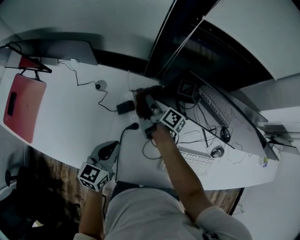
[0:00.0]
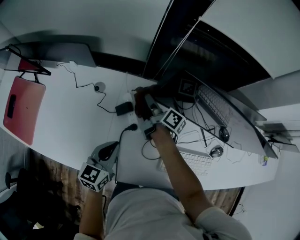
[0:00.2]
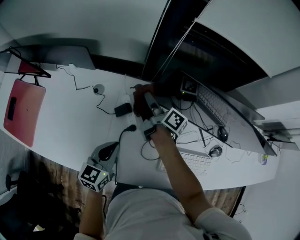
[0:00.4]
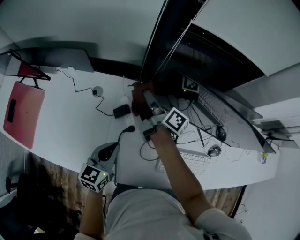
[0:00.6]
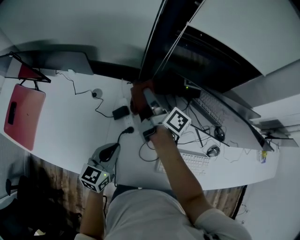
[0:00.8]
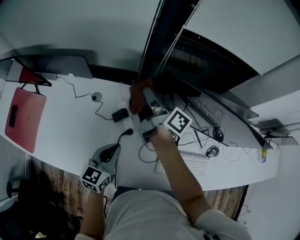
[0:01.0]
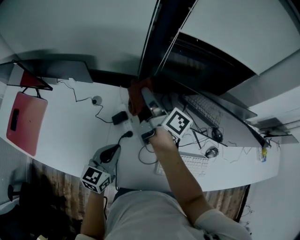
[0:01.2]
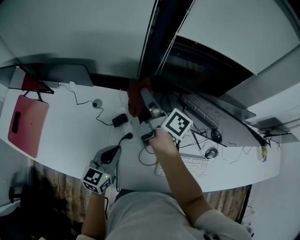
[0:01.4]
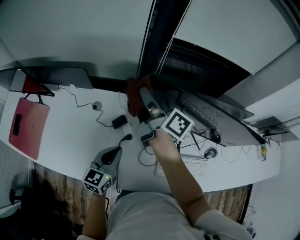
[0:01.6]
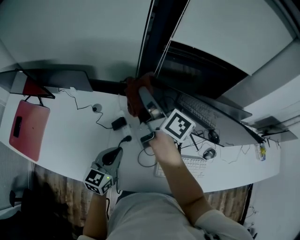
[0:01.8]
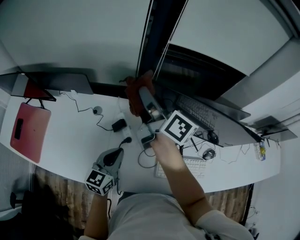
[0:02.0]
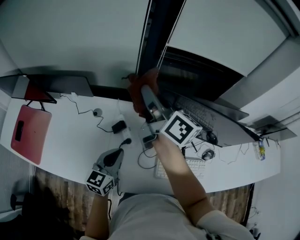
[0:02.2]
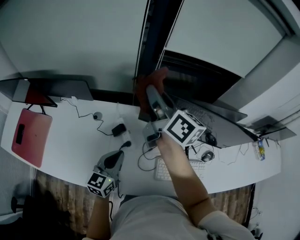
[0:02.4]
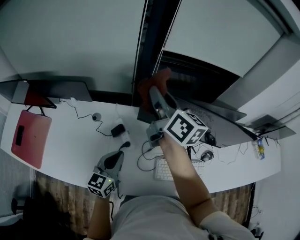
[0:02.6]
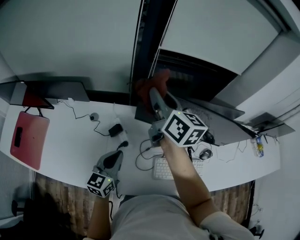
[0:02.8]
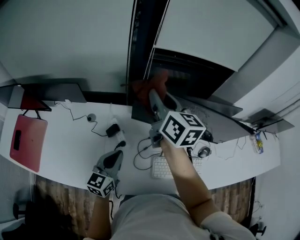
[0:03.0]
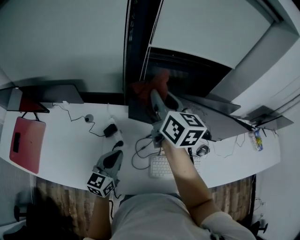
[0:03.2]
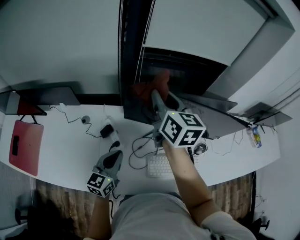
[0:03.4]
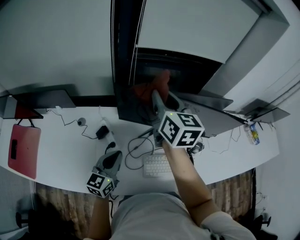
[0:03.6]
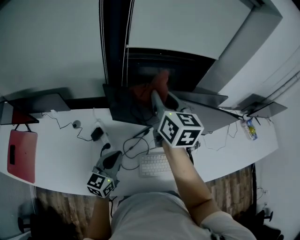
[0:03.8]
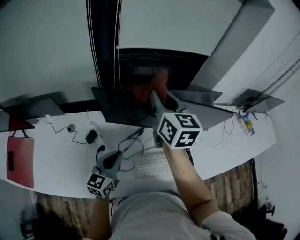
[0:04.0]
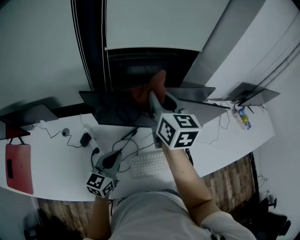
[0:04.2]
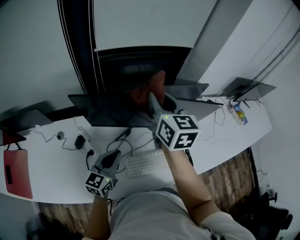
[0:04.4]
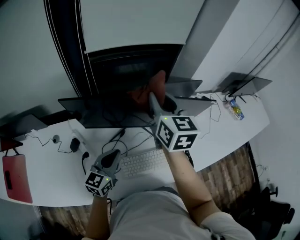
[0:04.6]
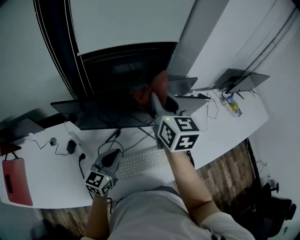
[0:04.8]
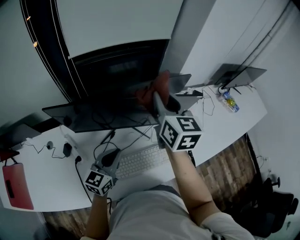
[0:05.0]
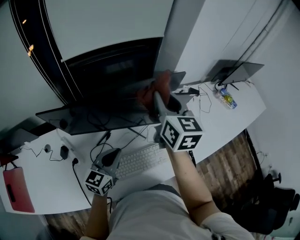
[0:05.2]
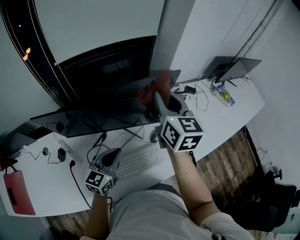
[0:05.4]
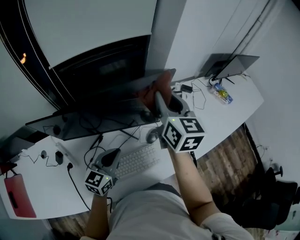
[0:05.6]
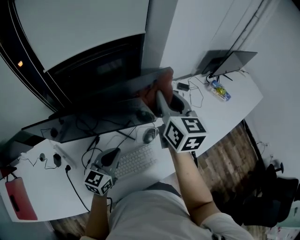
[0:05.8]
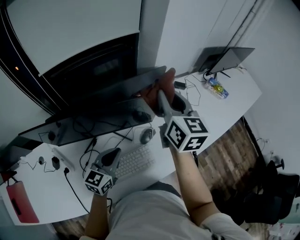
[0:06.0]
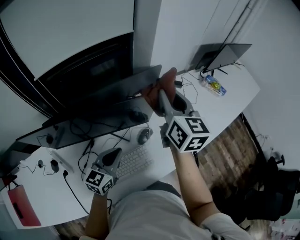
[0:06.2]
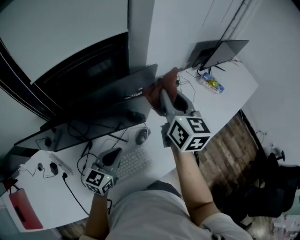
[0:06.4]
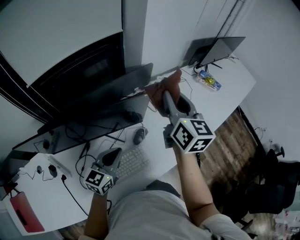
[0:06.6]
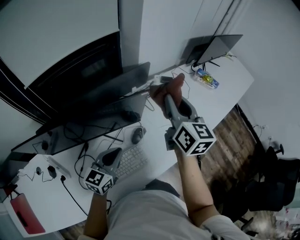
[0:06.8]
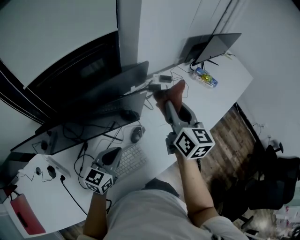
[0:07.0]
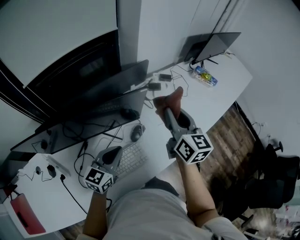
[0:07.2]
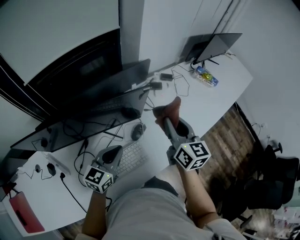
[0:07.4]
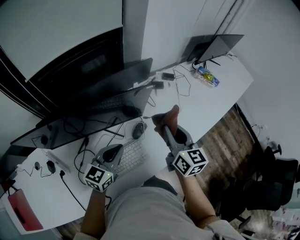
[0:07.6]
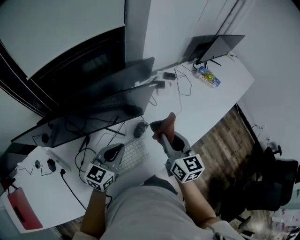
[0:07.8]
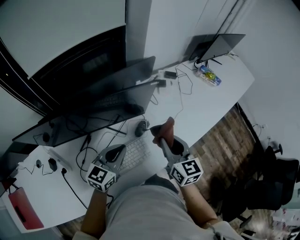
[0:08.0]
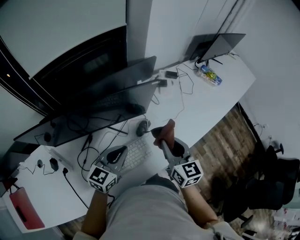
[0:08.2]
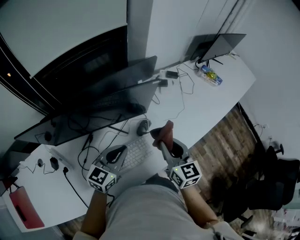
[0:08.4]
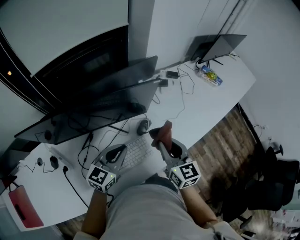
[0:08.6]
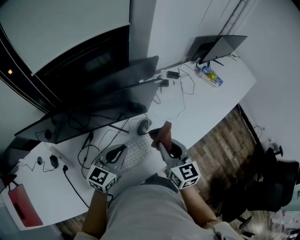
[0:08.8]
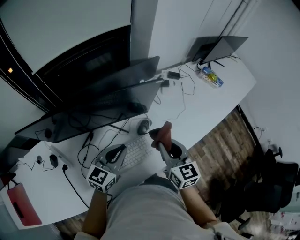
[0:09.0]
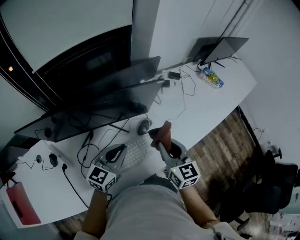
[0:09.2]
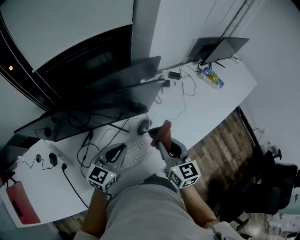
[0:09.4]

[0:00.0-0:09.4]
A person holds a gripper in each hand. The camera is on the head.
0:00.0 to 0:01.6: The right gripper heads upward, covering roughly 30 cm, and turns by roughly 20 degrees. The left gripper travels upward by some 5 cm.
0:01.6 to 0:03.2: The right gripper travels to the right and upward by approximately 15 cm, and rolls counterclockwise, seen from behind, by approximately 40 degrees, while the left gripper shifts by approximately 5 cm.
0:03.2 to 0:04.8: Both grippers travel together to the right, roughly 25 cm. The left gripper swivels some 20 degrees; the right gripper rotates about 20 degrees.
0:04.8 to 0:06.2: The right gripper heads to the right, covering some 25 cm, while the left gripper shifts some 20 cm to the right and forward.
0:06.2 to 0:07.8: The right gripper is displaced downward, backward and to the right by some 20 cm.
0:07.8 to 0:09.4: The right gripper shifts by roughly 5 cm.

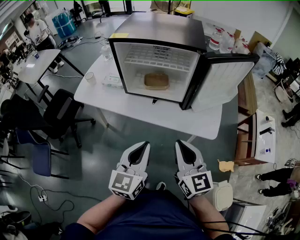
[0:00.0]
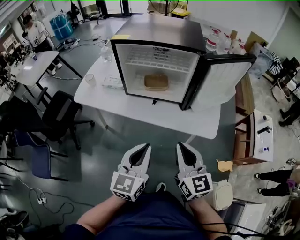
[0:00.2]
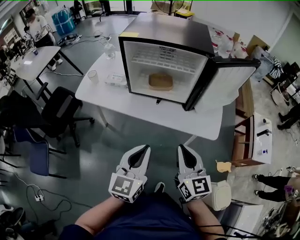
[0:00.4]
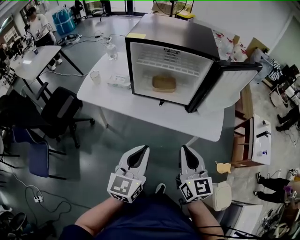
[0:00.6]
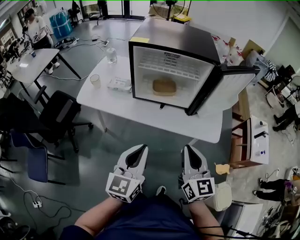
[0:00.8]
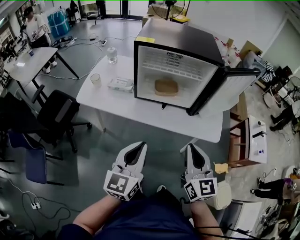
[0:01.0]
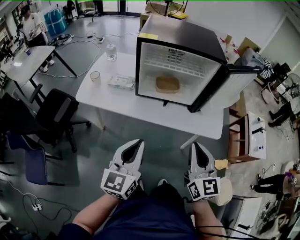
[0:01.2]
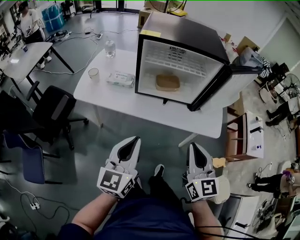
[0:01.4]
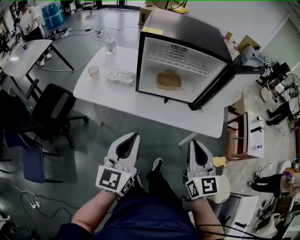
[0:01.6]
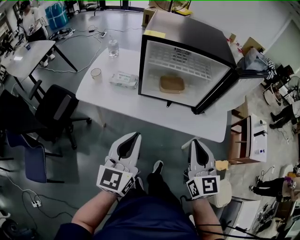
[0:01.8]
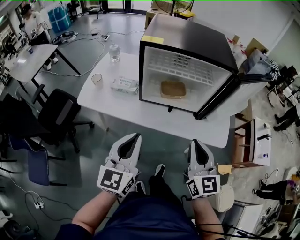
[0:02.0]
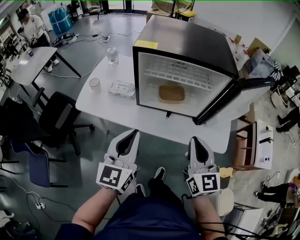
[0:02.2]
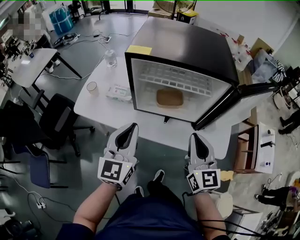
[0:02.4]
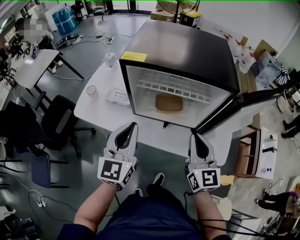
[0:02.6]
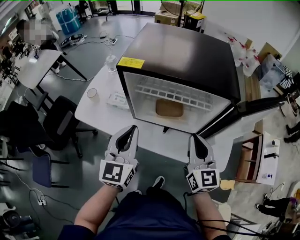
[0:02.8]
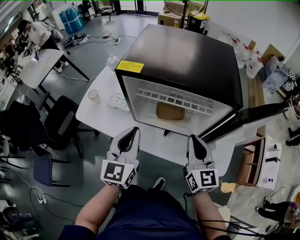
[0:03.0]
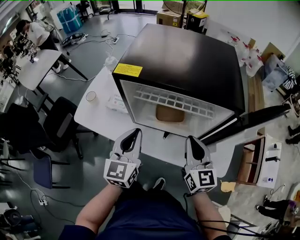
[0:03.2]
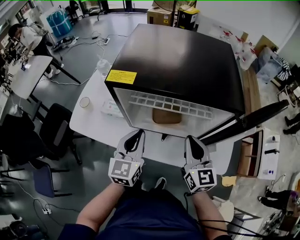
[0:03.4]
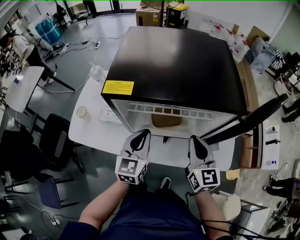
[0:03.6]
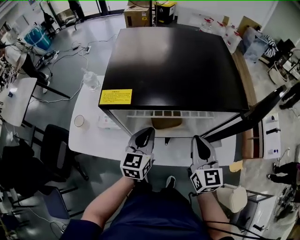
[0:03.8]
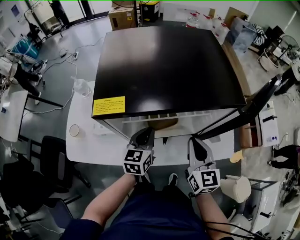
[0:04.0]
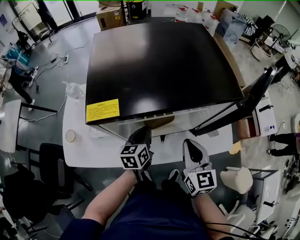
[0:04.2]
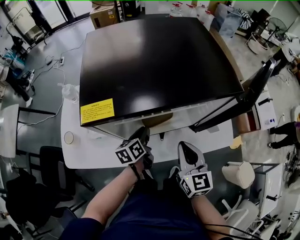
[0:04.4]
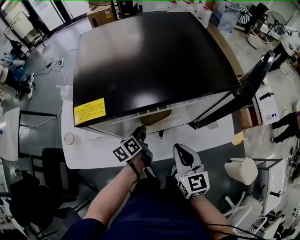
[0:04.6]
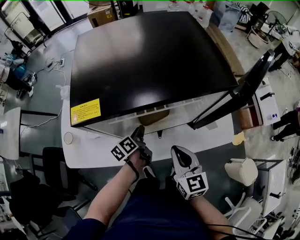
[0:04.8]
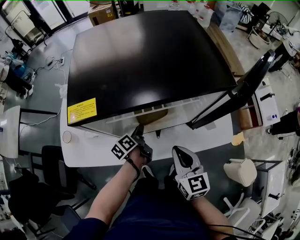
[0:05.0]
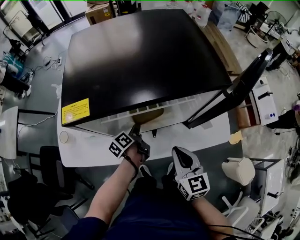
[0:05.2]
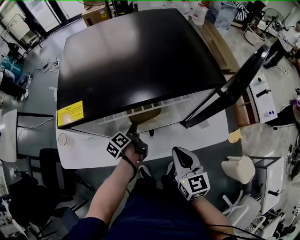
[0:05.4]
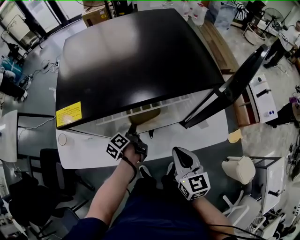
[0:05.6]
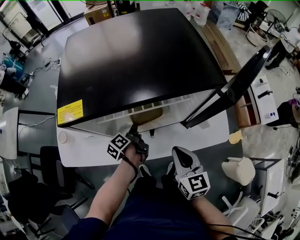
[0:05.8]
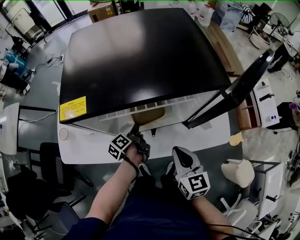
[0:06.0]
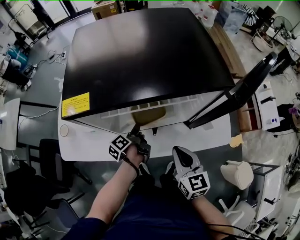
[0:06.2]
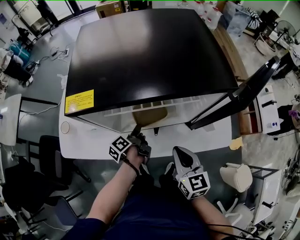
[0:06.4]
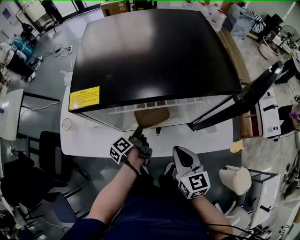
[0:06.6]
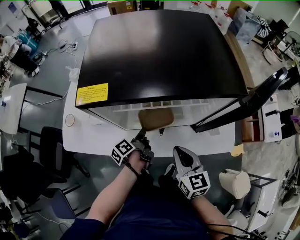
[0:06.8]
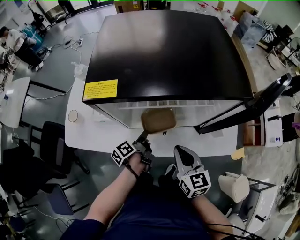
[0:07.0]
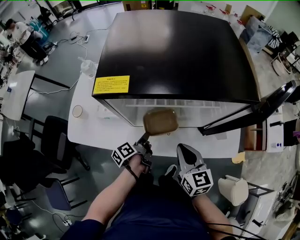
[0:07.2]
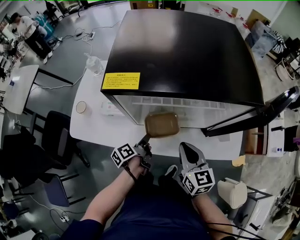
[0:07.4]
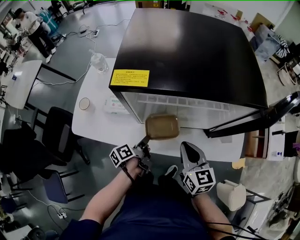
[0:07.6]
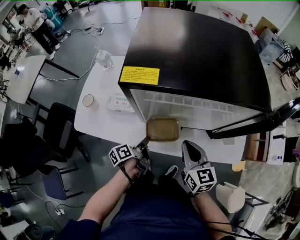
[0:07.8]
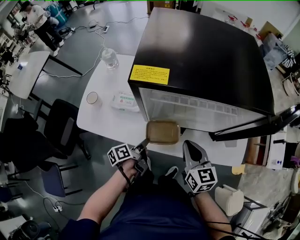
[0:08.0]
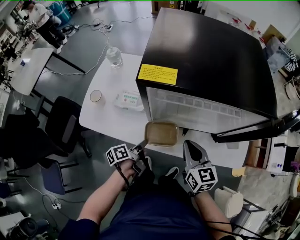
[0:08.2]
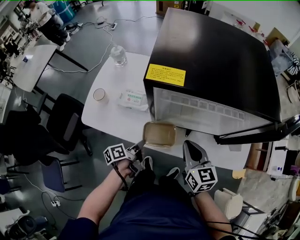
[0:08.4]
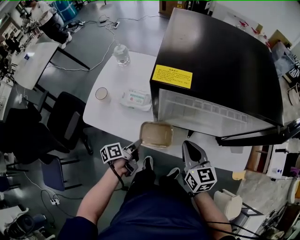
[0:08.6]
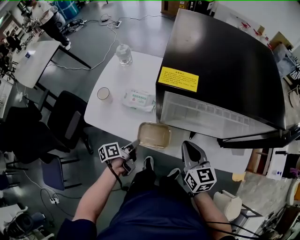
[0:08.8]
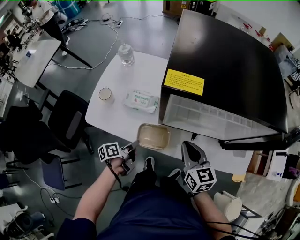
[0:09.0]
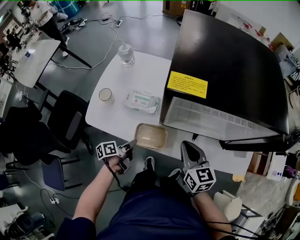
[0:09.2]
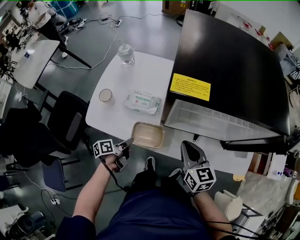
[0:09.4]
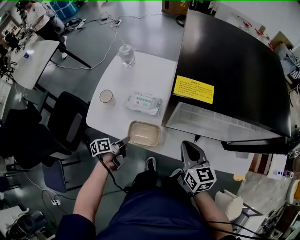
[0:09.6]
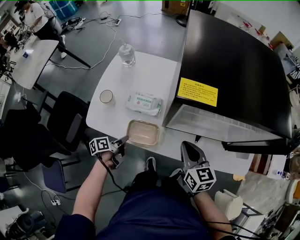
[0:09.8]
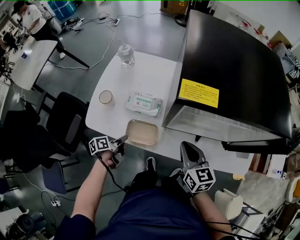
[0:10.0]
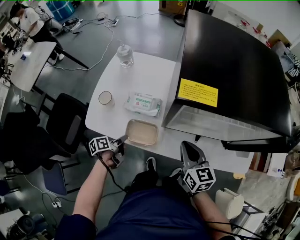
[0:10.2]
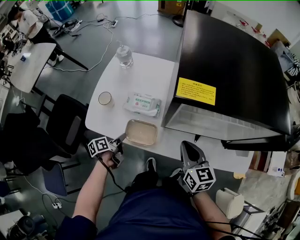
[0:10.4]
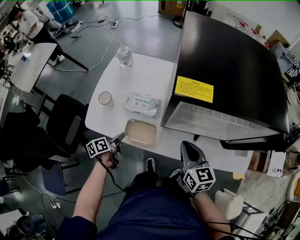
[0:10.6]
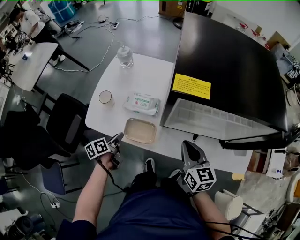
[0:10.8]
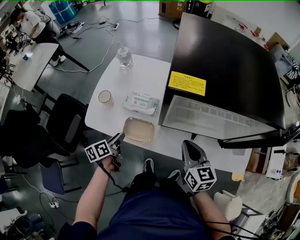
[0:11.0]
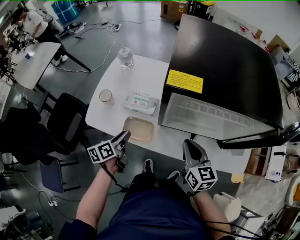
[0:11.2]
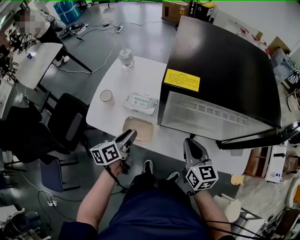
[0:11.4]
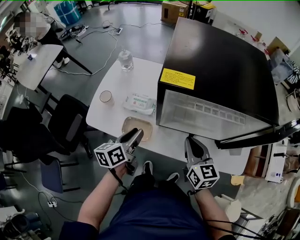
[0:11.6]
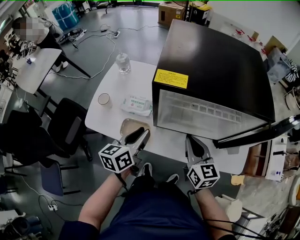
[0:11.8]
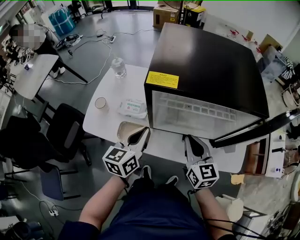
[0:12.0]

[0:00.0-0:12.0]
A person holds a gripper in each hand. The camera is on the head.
0:00.0 to 0:01.6: The left gripper goes roughly 20 cm to the left. The right gripper travels to the left by some 10 cm.
0:01.6 to 0:03.0: The grippers both shift forward by approximately 25 cm.
0:03.0 to 0:04.4: The left gripper is displaced downward by some 20 cm, and turns by roughly 50 degrees, while the right gripper travels downward by roughly 5 cm, and turns by approximately 30 degrees.
0:04.4 to 0:06.0: The left gripper heads downward, covering approximately 5 cm, and changes its angle by some 40 degrees, while the right gripper moves some 5 cm.
0:06.0 to 0:07.6: The right gripper heads to the left, covering some 5 cm; the left gripper shifts roughly 15 cm backward and to the left.
0:07.6 to 0:09.0: The right gripper shifts approximately 10 cm to the left. The left gripper is displaced to the left by approximately 15 cm.
0:09.0 to 0:10.4: The left gripper is displaced to the left by roughly 10 cm.
0:10.4 to 0:12.0: The right gripper goes approximately 10 cm upward and to the right. The left gripper heads upward and to the right, covering approximately 35 cm, and rotates around the line of its fingers by approximately 50 degrees, clockwise from behind.

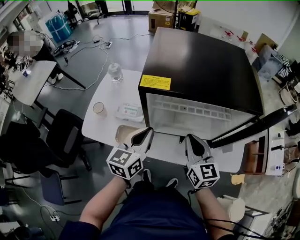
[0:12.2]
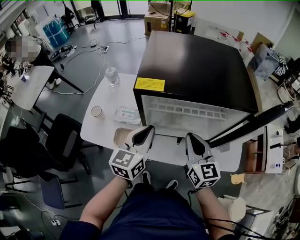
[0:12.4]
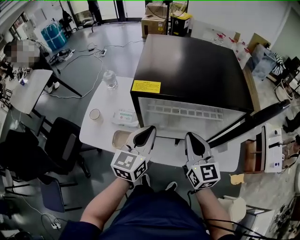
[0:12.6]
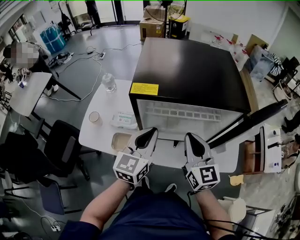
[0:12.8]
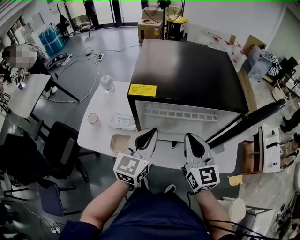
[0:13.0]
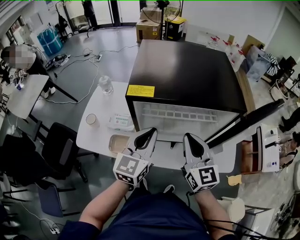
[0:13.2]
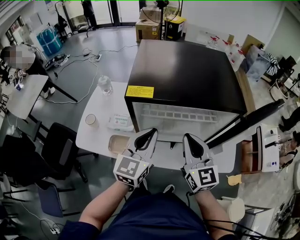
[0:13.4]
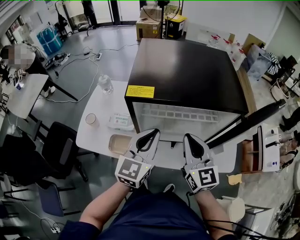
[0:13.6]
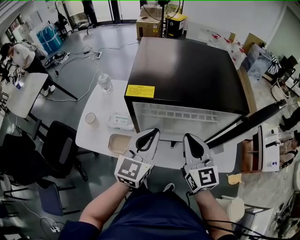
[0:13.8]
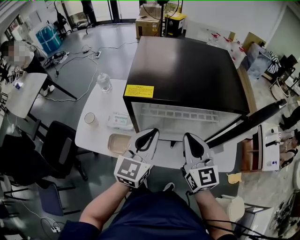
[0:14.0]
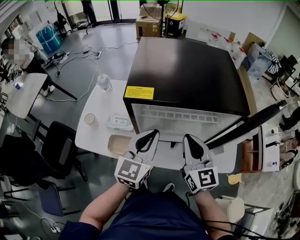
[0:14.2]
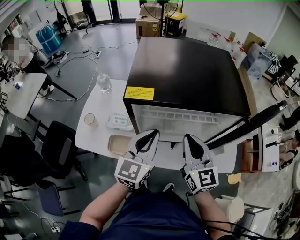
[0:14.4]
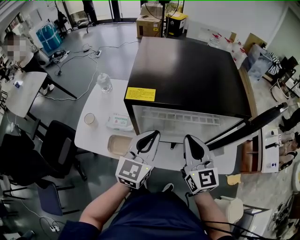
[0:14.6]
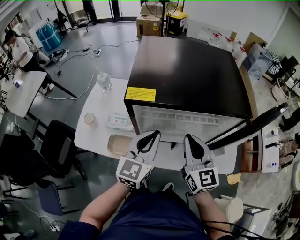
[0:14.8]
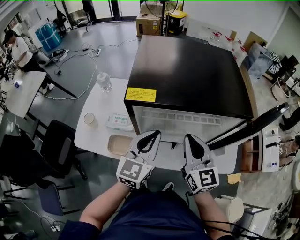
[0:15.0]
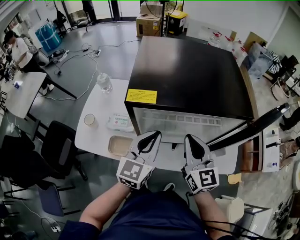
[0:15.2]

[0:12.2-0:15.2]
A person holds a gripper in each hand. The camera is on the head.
0:12.2 to 0:13.8: The right gripper shifts roughly 5 cm upward; the left gripper shifts approximately 10 cm upward and to the right.
0:13.8 to 0:15.2: The grippers move only a little.
